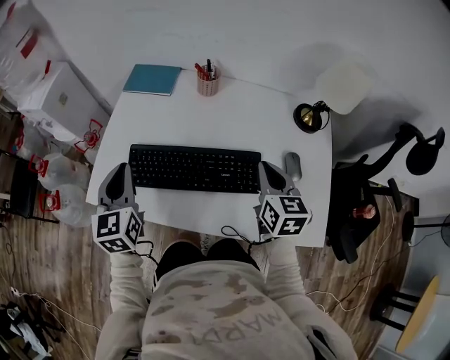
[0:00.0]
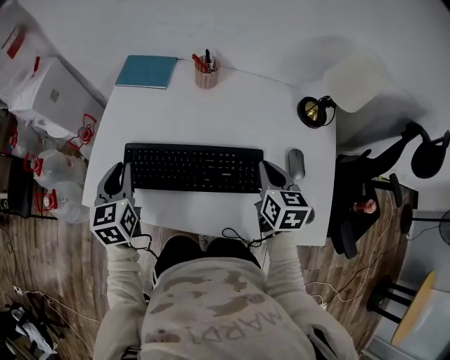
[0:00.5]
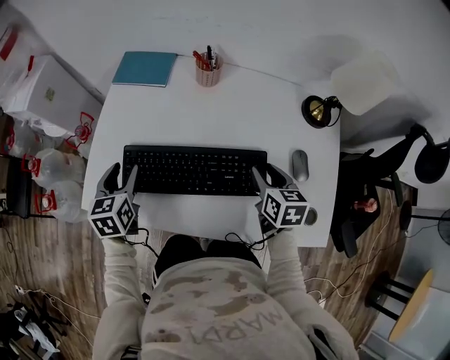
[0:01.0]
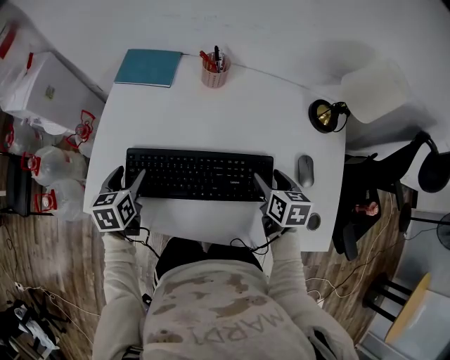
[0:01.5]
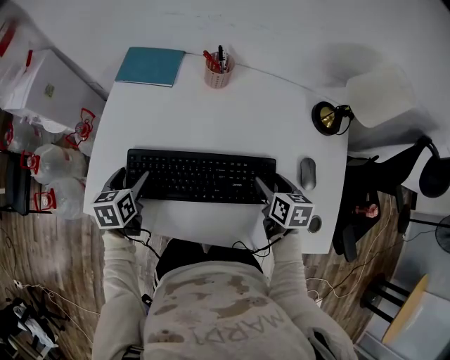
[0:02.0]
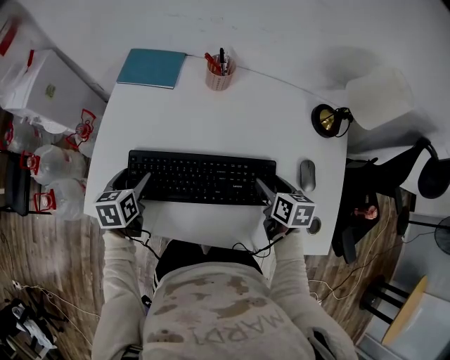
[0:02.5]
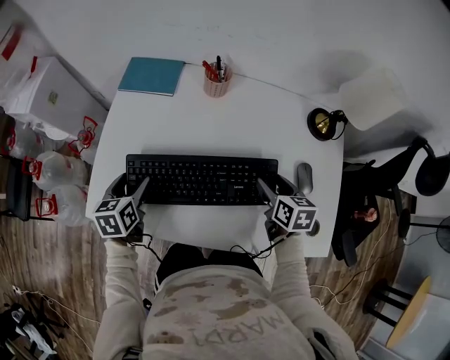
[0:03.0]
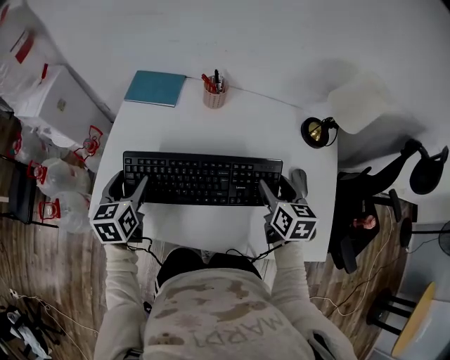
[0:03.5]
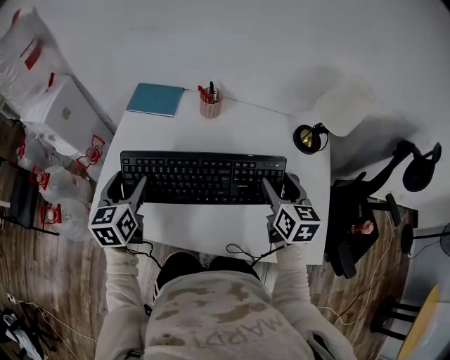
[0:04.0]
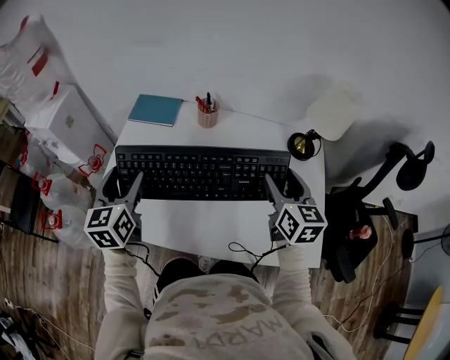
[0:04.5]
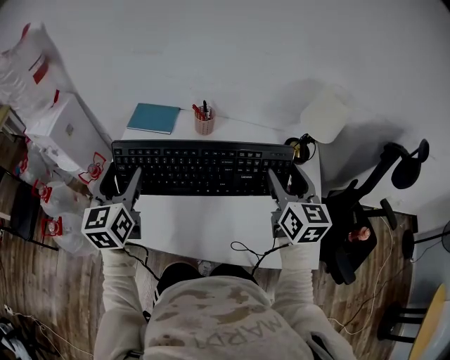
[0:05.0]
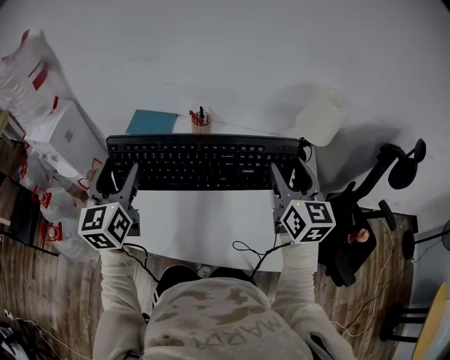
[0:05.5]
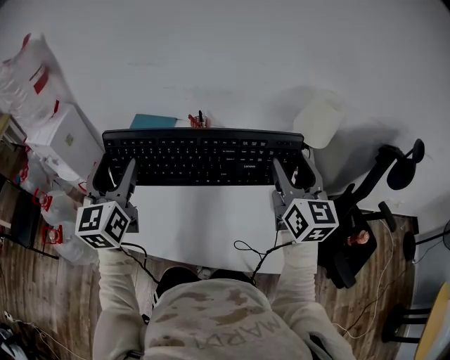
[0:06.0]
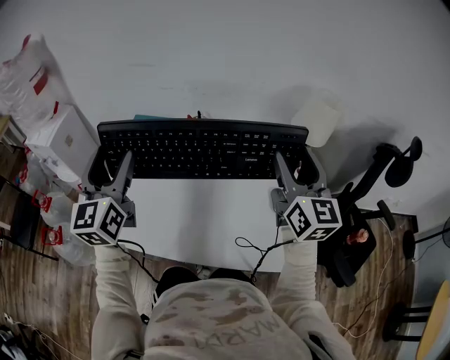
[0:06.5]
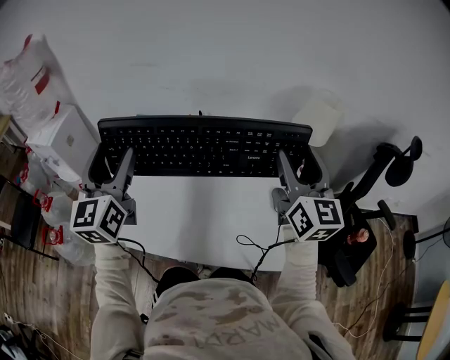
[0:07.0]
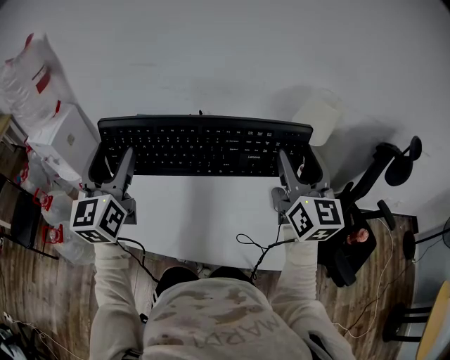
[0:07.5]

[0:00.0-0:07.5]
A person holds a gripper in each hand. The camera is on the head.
0:00.0 to 0:02.0: Both grippers move downward, roughly 15 cm. The right gripper turns by about 30 degrees, and opens; the left gripper changes its angle by about 30 degrees, and opens up.
0:02.0 to 0:04.0: Both grippers travel together upward, some 15 cm. The left gripper rotates about 20 degrees. Meanwhile the right gripper rotates some 30 degrees.
0:04.0 to 0:05.5: The two grippers go some 15 cm upward. The right gripper turns by about 20 degrees; the left gripper rotates approximately 20 degrees.
0:05.5 to 0:07.5: The grippers both shift upward by about 5 cm.

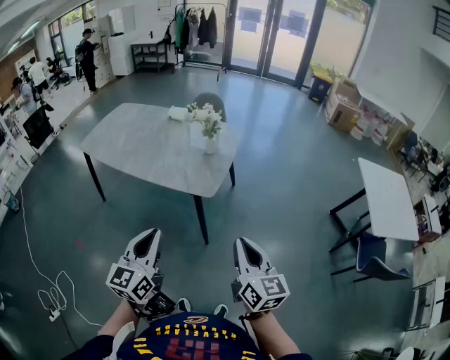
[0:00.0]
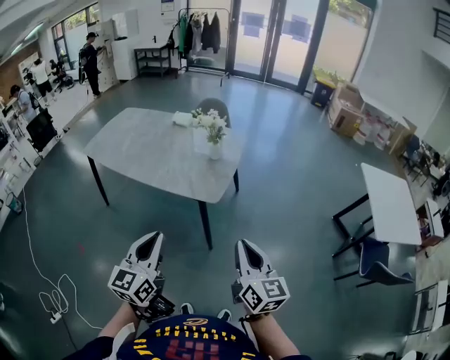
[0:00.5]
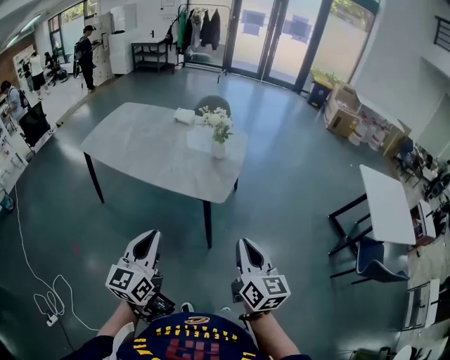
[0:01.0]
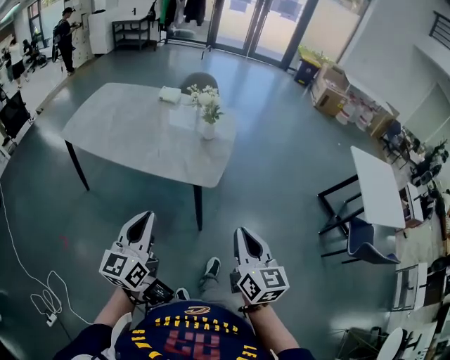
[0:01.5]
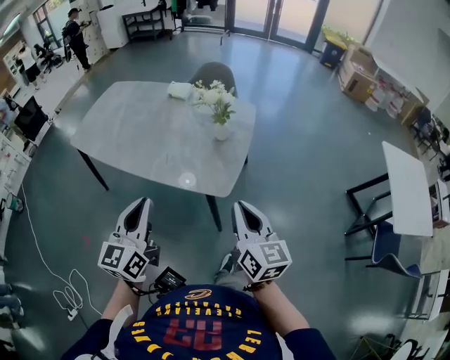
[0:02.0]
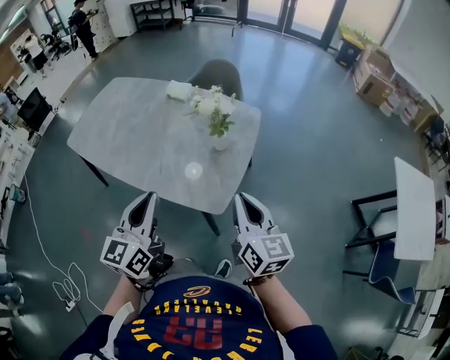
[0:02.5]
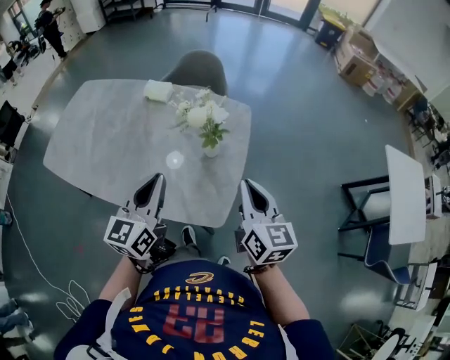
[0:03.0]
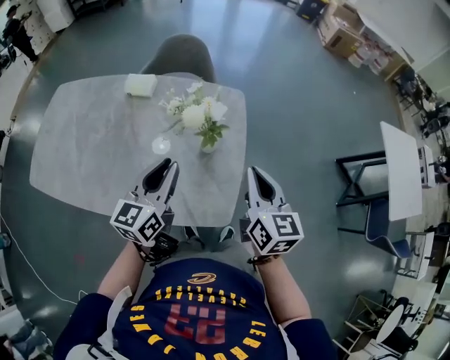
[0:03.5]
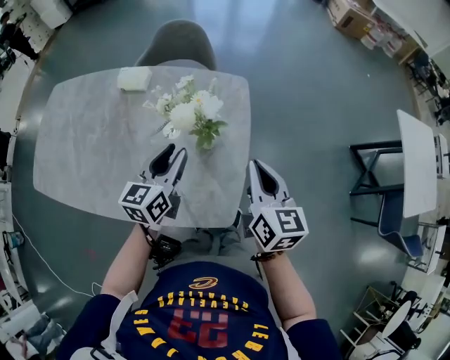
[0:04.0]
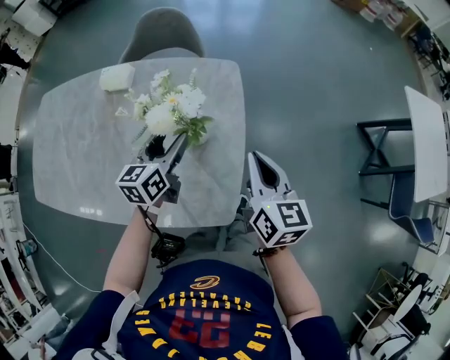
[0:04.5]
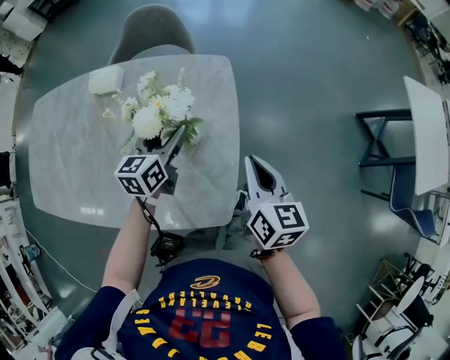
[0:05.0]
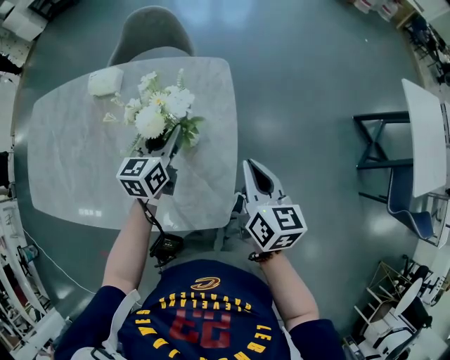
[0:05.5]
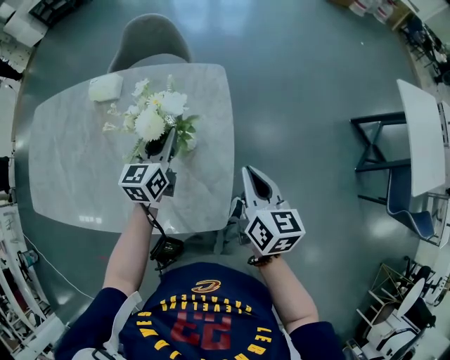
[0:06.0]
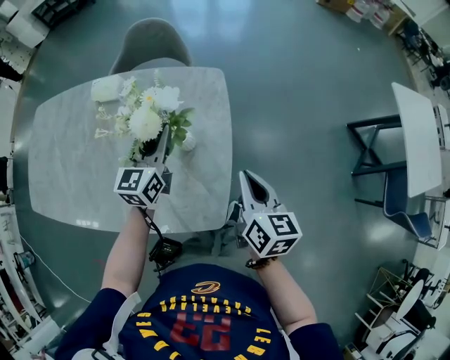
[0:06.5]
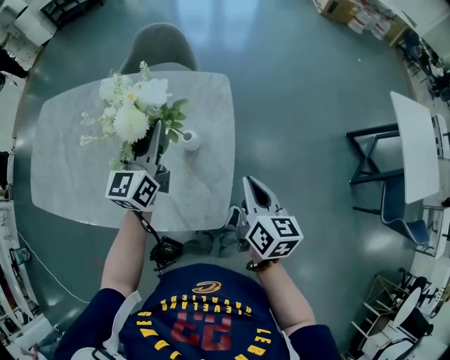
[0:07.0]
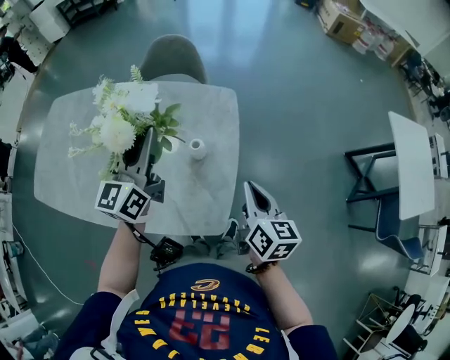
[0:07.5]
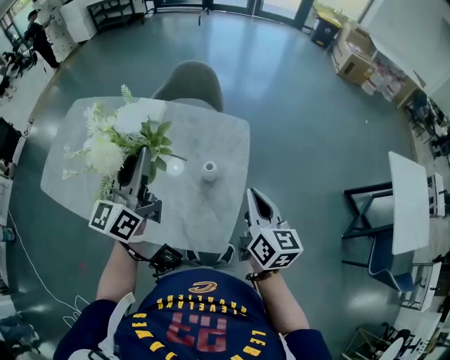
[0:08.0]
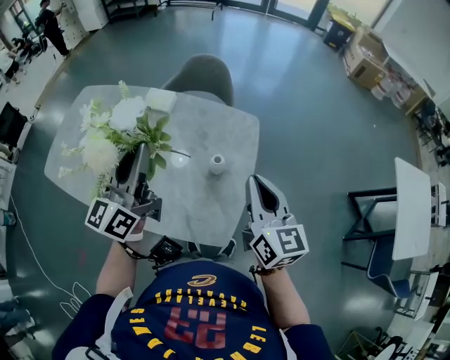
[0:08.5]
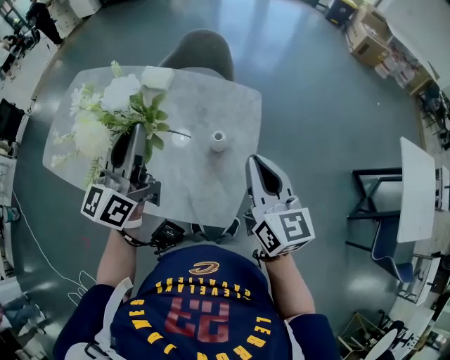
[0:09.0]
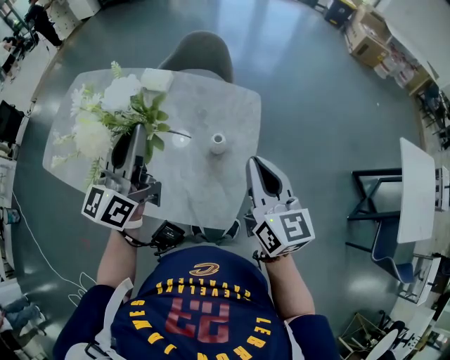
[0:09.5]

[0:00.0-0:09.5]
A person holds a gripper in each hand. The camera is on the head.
0:00.0 to 0:02.0: The right gripper heads forward, covering about 20 cm. The left gripper travels forward and to the left by about 20 cm.
0:02.0 to 0:04.0: The grippers both shift forward by about 40 cm. The left gripper swivels some 30 degrees, and opens.
0:04.0 to 0:05.5: The left gripper moves forward and downward, roughly 10 cm, and opens and closes again. Meanwhile the right gripper moves downward, some 5 cm.
0:05.5 to 0:07.5: The left gripper goes roughly 20 cm upward, and changes its angle by approximately 30 degrees; the right gripper changes place by some 5 cm.
0:07.5 to 0:09.5: The right gripper shifts about 15 cm upward and to the left, and changes its angle by approximately 30 degrees. Meanwhile the left gripper heads to the left, upward and backward, covering approximately 15 cm.

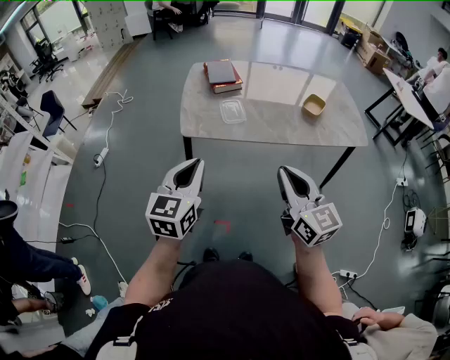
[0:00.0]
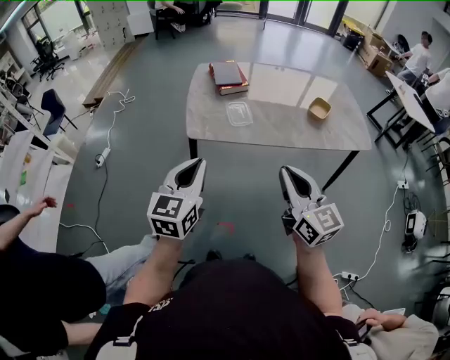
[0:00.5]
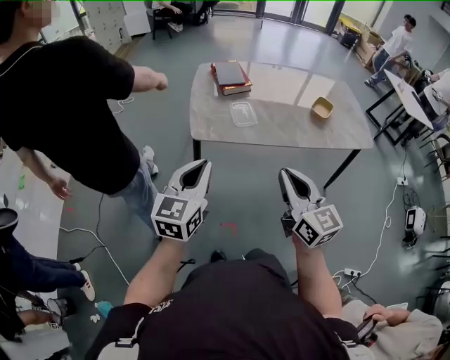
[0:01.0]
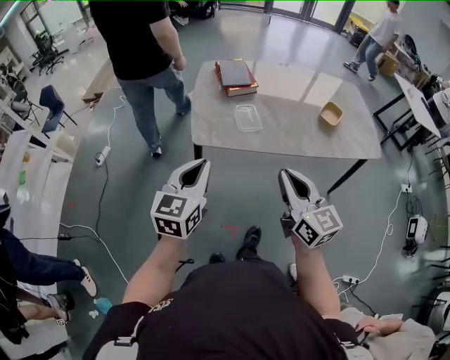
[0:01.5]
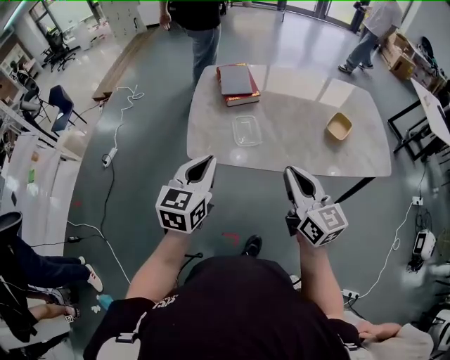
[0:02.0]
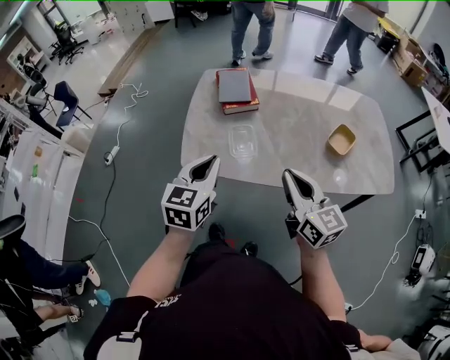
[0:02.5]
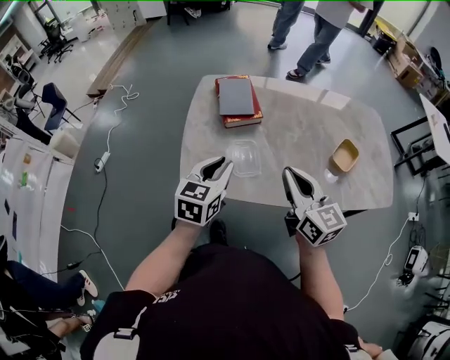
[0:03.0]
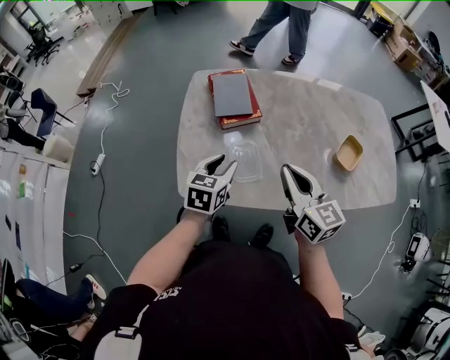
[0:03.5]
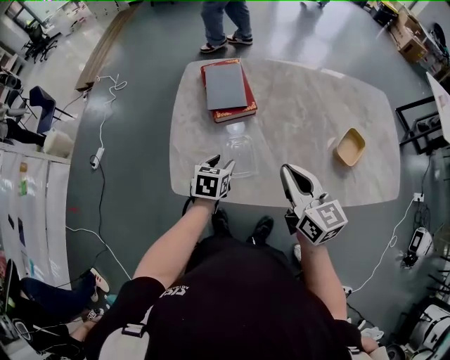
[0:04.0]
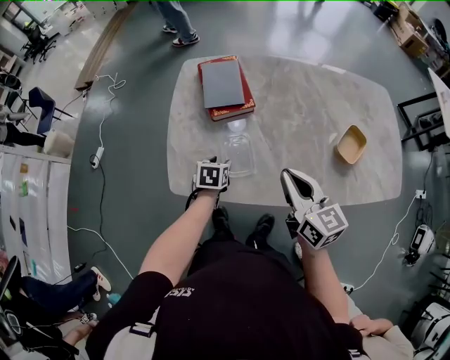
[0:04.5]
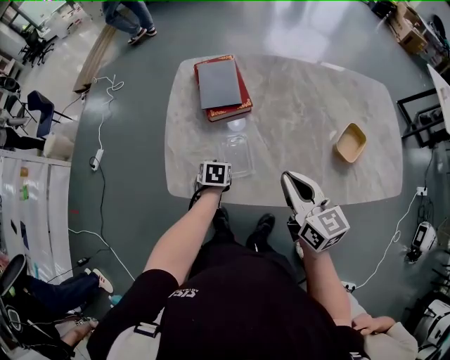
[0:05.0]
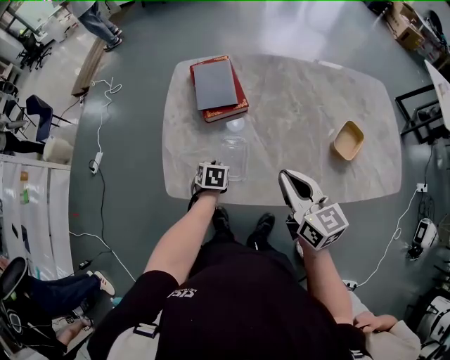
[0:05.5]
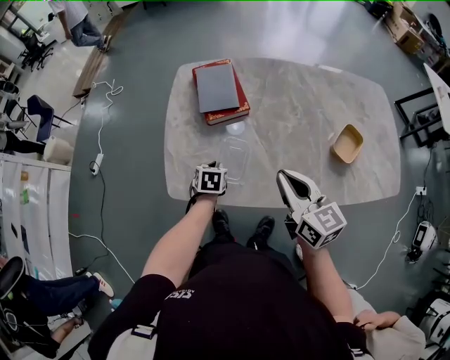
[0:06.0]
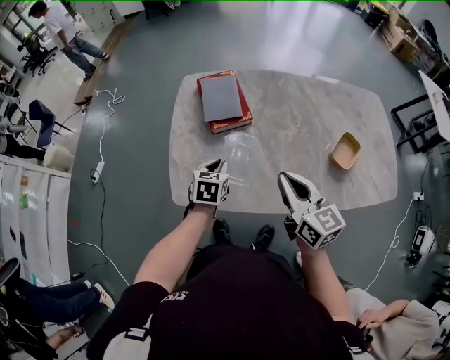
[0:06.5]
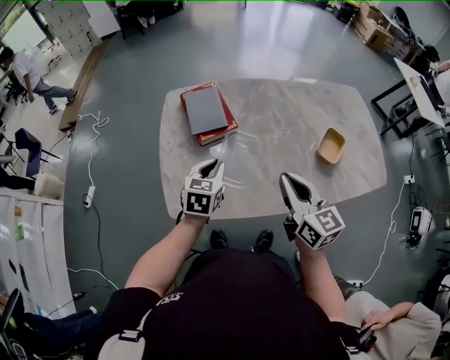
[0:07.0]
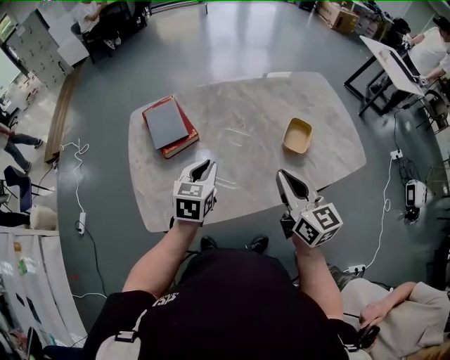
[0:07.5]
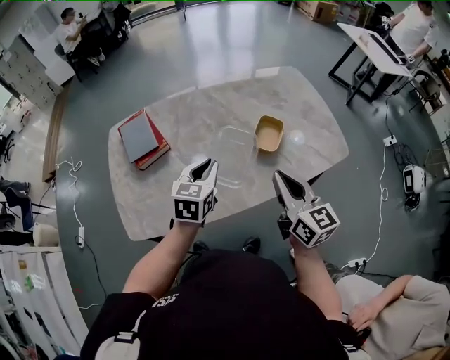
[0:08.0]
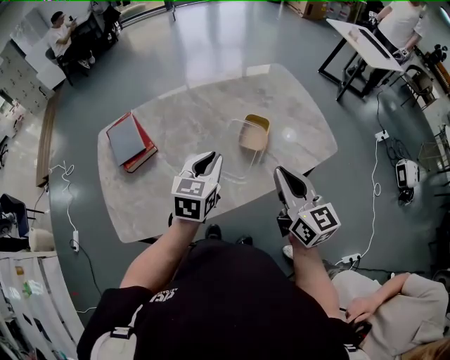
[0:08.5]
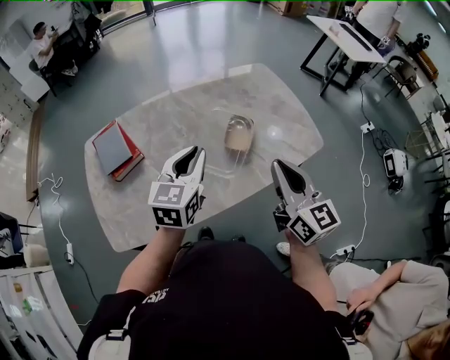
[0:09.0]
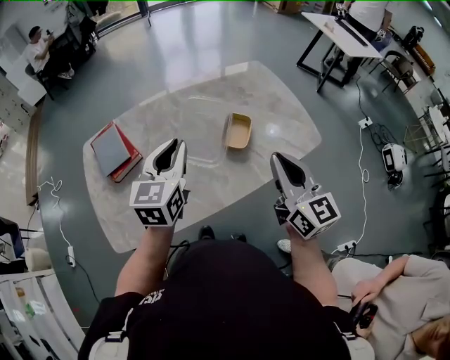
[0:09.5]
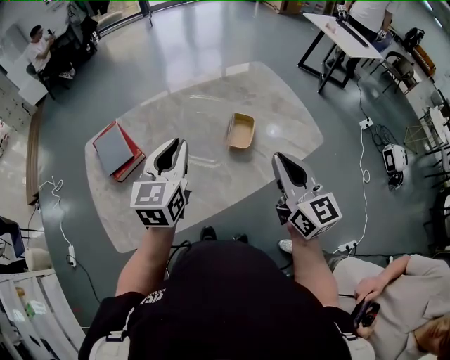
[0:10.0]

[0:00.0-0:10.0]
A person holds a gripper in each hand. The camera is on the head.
0:00.0 to 0:02.0: The two grippers go some 20 cm forward.
0:02.0 to 0:04.0: The left gripper travels forward and downward by about 35 cm, tilts its fingers approximately 30 degrees downward, and opens up. The right gripper heads forward, covering roughly 25 cm.
0:04.0 to 0:06.0: The left gripper travels downward by about 10 cm, and closes.
0:06.0 to 0:08.0: The left gripper changes place by some 35 cm, and rotates roughly 40 degrees; the right gripper changes place by approximately 25 cm, and rotates approximately 30 degrees.
0:08.0 to 0:10.0: The left gripper heads upward, covering roughly 10 cm. The right gripper is displaced upward and to the right by approximately 10 cm.
